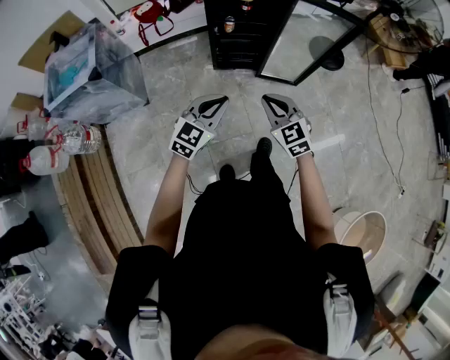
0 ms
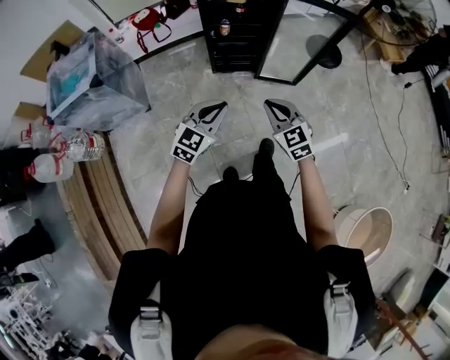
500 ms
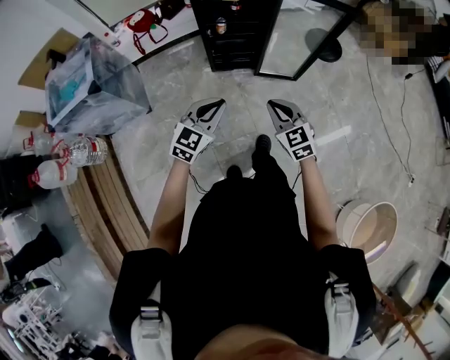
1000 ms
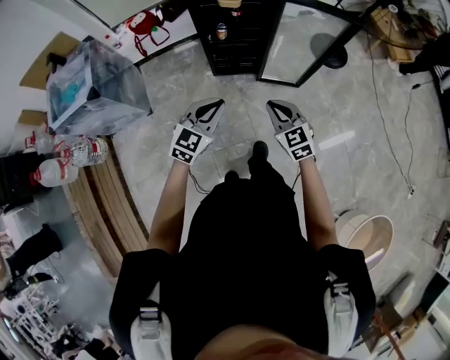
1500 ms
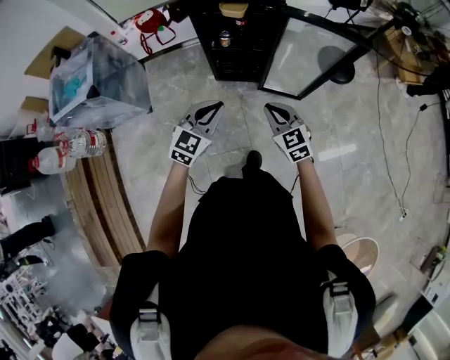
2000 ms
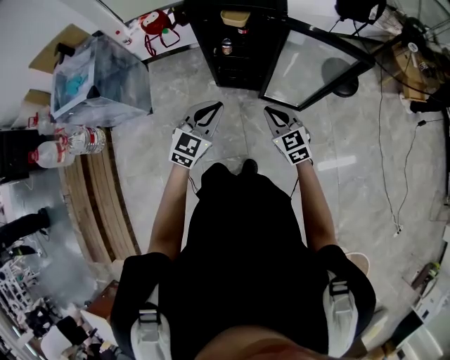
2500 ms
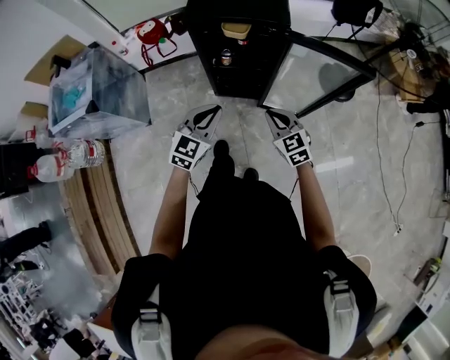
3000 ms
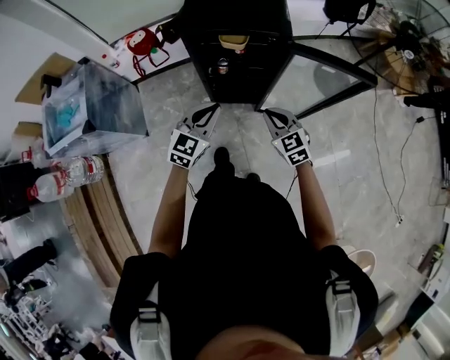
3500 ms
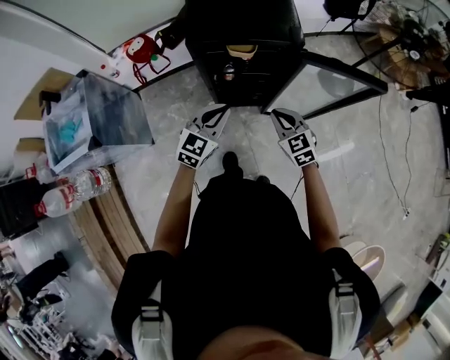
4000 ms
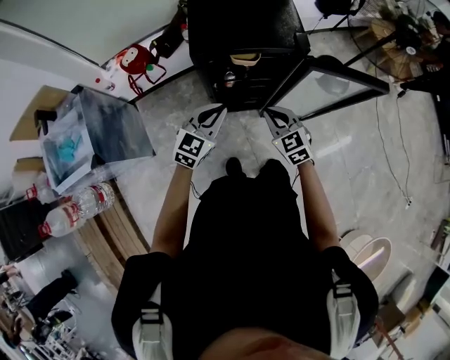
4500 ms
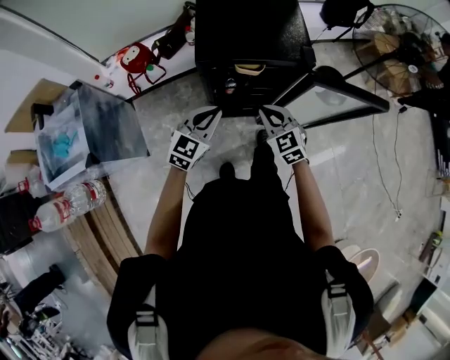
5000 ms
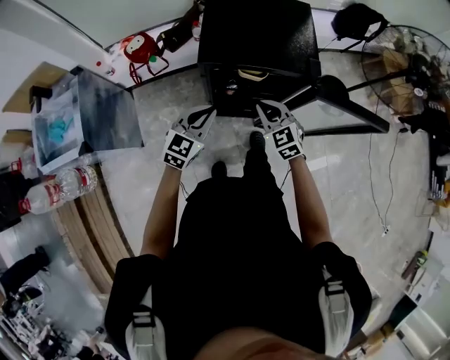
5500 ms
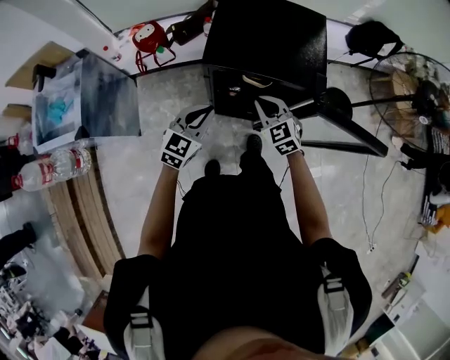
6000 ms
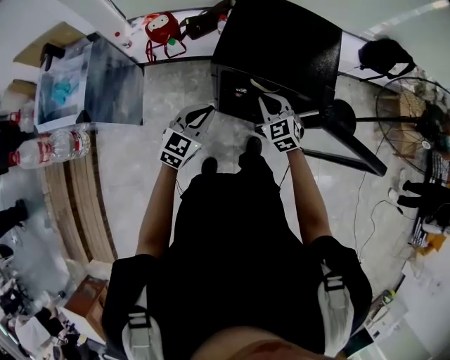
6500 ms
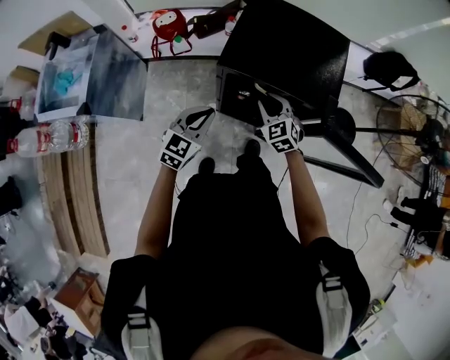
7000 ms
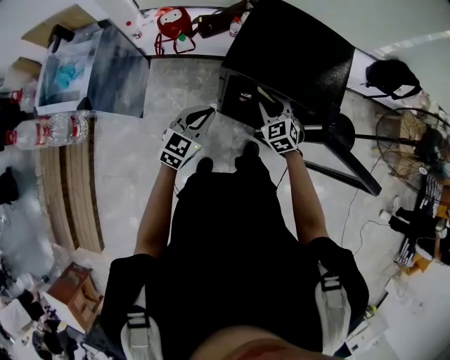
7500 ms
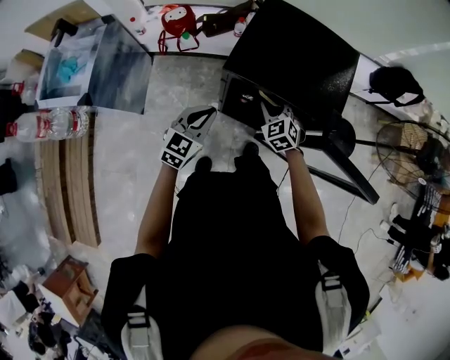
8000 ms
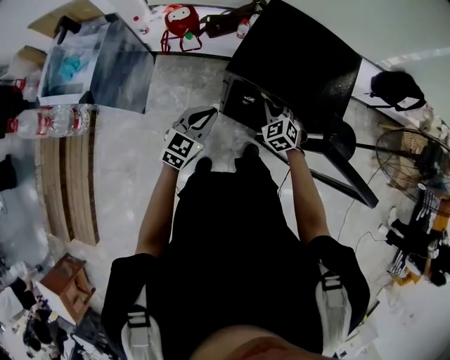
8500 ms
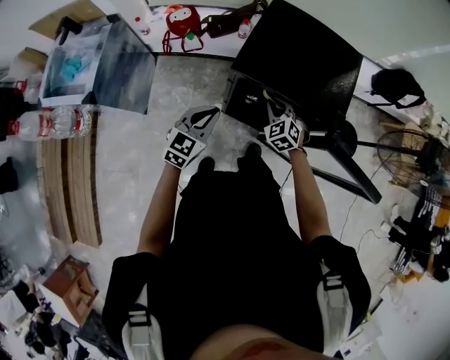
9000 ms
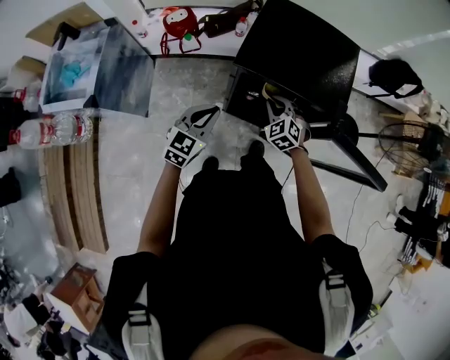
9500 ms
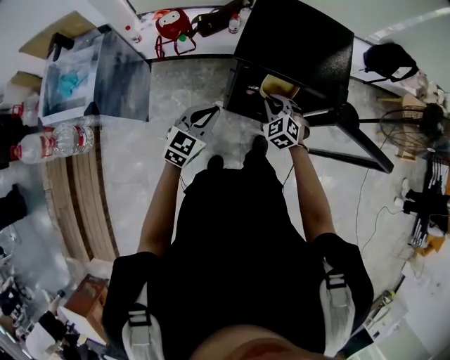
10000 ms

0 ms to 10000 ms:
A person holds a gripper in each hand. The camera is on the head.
0 ms to 2000 ms: The two grippers go some 15 cm forward and to the right.
2000 ms to 4000 ms: The grippers both shift forward by about 20 cm.
4000 ms to 6000 ms: The grippers both shift forward and to the left by roughly 15 cm.
6000 ms to 8000 ms: The right gripper is displaced forward and downward by approximately 10 cm, and opens up.
8000 ms to 10000 ms: The right gripper moves backward, about 5 cm. Meanwhile the left gripper shifts by some 5 cm.

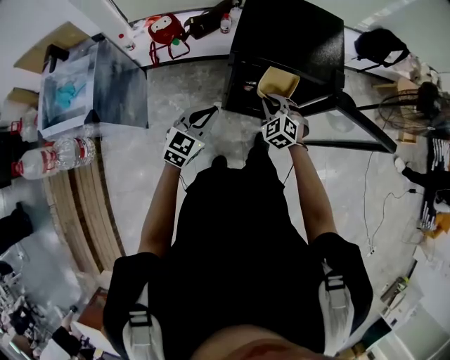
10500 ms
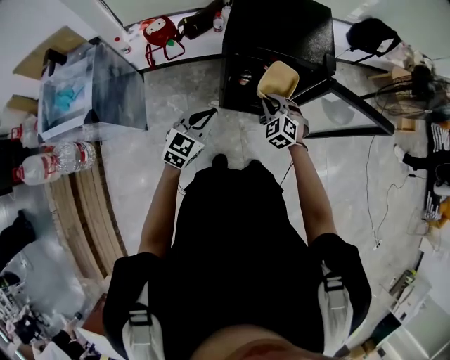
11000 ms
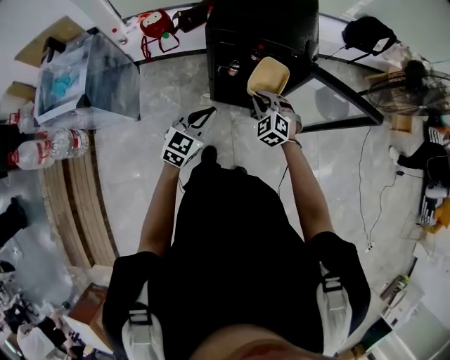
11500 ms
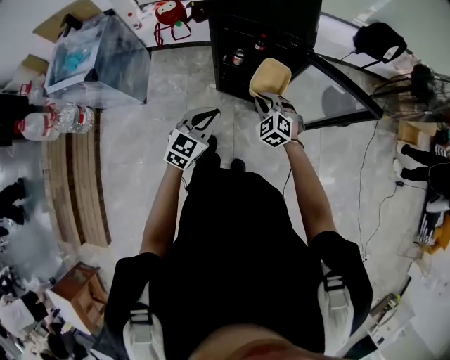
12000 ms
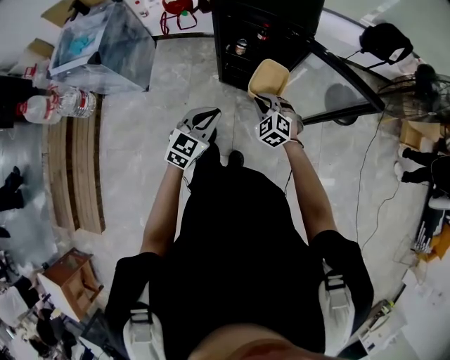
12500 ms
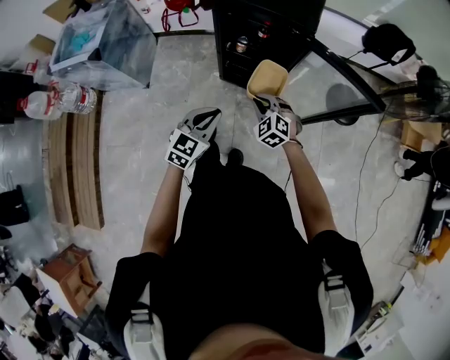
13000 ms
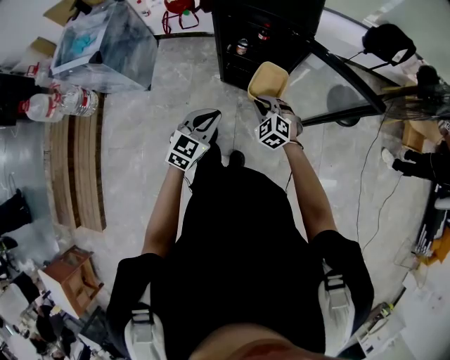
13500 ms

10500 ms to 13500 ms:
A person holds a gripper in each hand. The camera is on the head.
10500 ms to 12000 ms: Both grippers move backward and to the right, approximately 20 cm.
12000 ms to 13500 ms: The two grippers go roughly 5 cm backward.

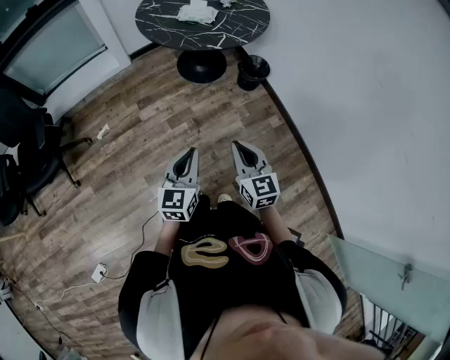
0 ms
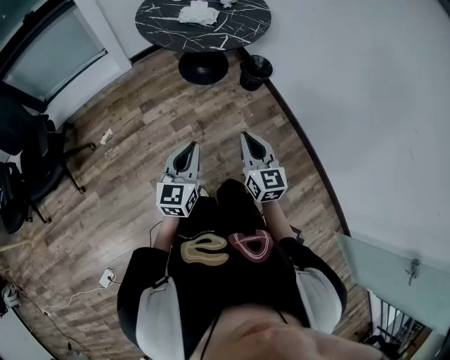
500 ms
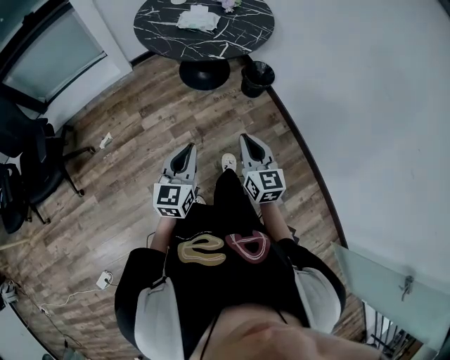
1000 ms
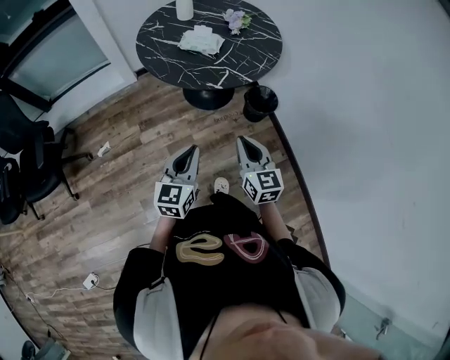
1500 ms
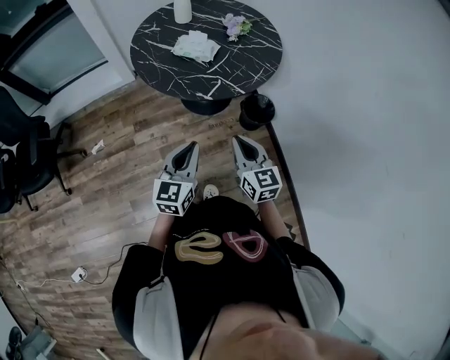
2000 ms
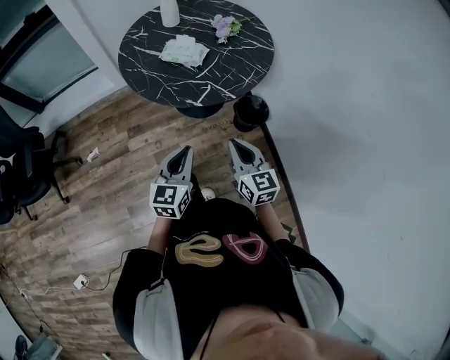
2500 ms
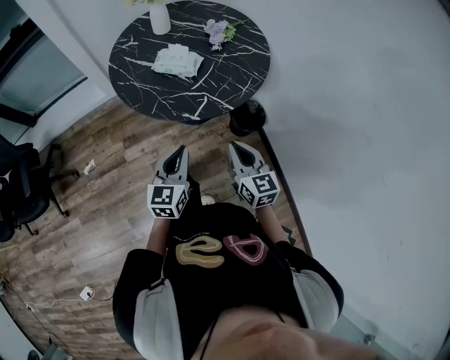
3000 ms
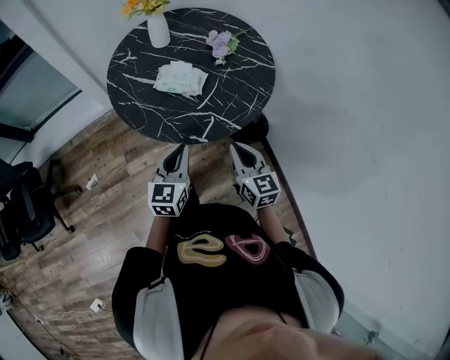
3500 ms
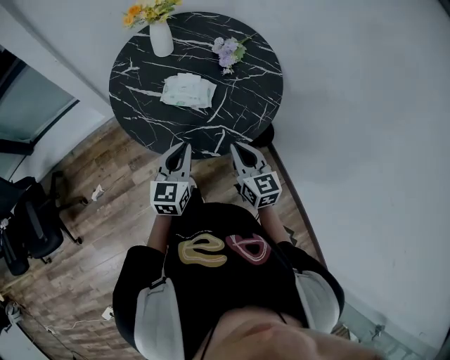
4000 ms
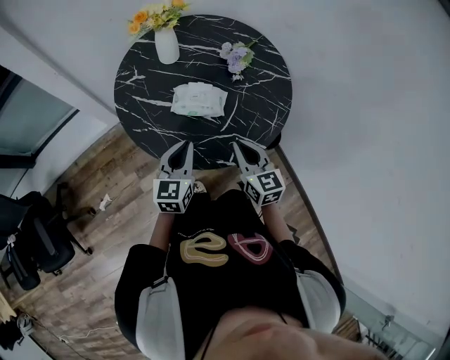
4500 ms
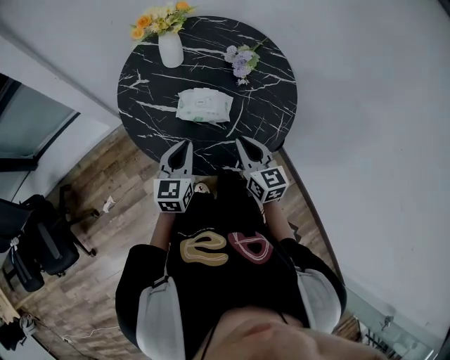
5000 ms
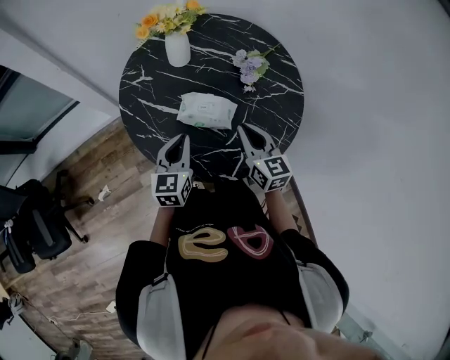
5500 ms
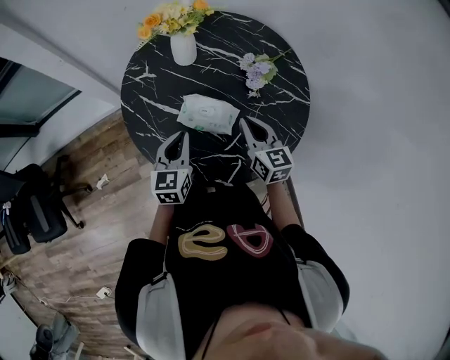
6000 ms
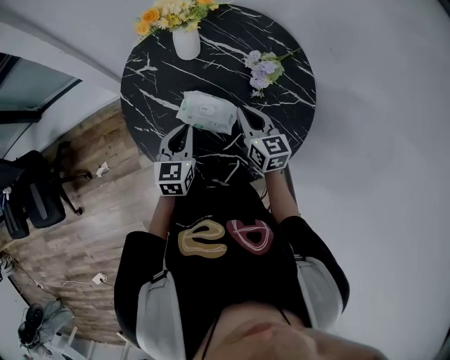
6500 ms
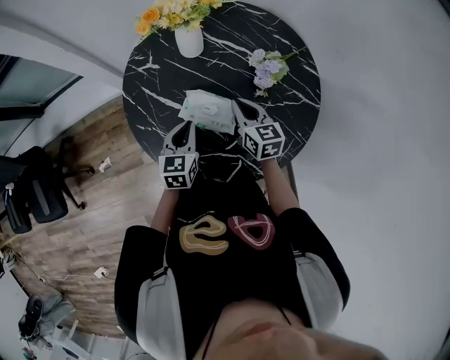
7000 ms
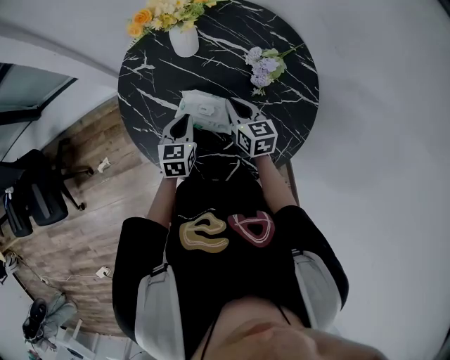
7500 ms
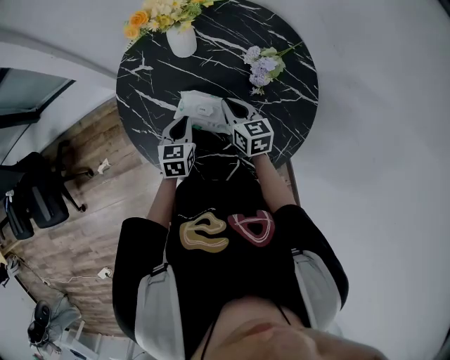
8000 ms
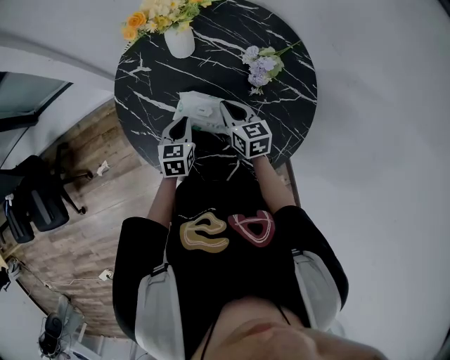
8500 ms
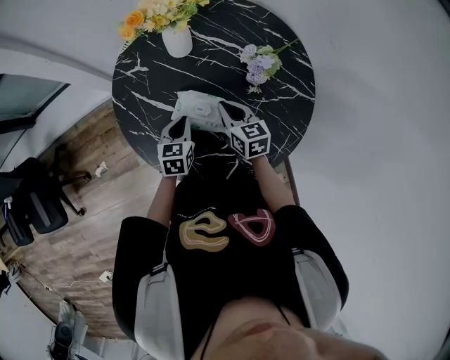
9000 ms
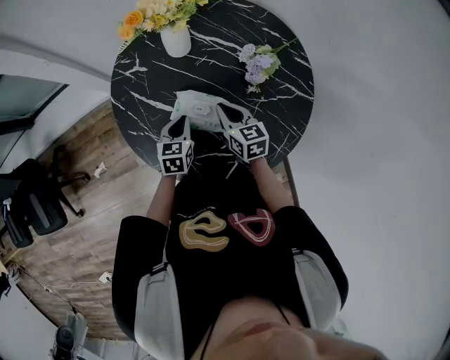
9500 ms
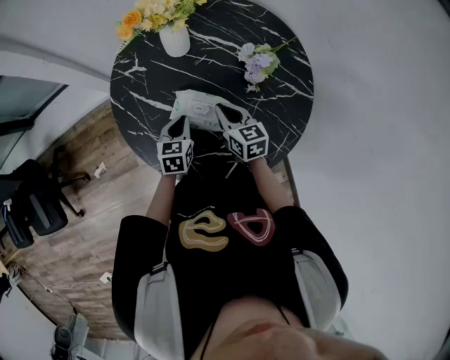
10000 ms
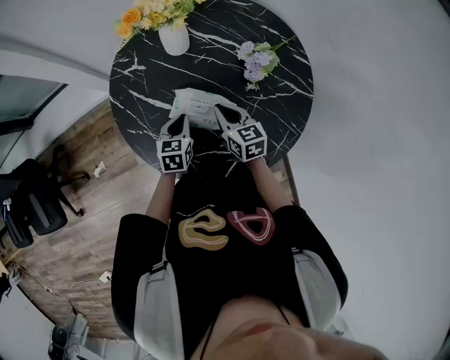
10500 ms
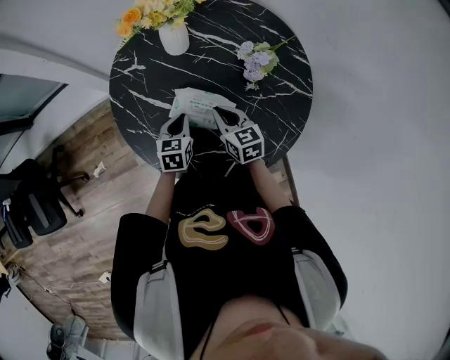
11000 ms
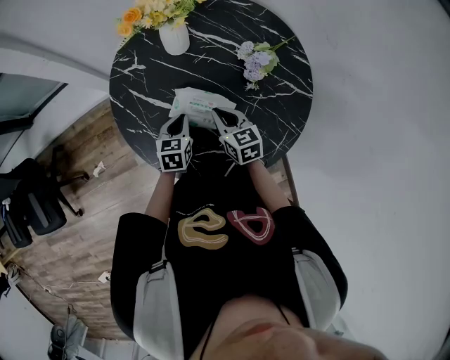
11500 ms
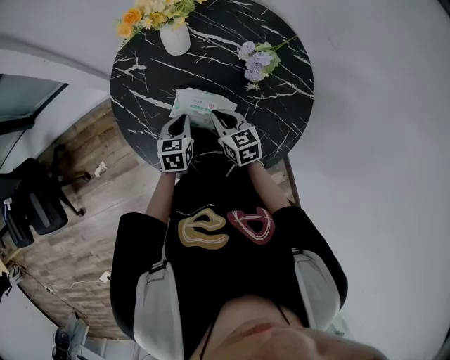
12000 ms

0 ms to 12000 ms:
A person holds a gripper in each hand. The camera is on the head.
0 ms to 2000 ms: The left gripper shifts roughly 30 cm forward and to the right. The right gripper is displaced forward by about 30 cm.
2000 ms to 4000 ms: Both grippers travel together forward, some 25 cm.
4000 ms to 6000 ms: Both grippers travel together forward, some 20 cm.
6000 ms to 8000 ms: The right gripper heads forward and downward, covering approximately 10 cm, while the left gripper moves downward and forward, roughly 10 cm.
8000 ms to 12000 ms: The grippers move only a little.

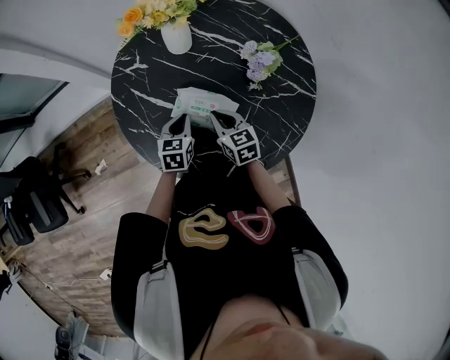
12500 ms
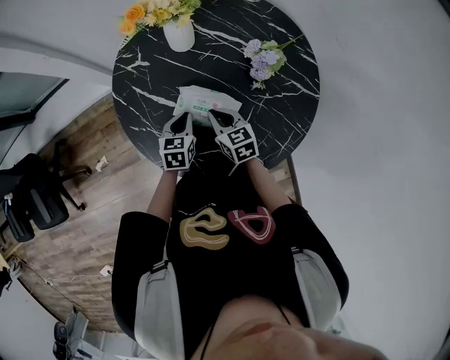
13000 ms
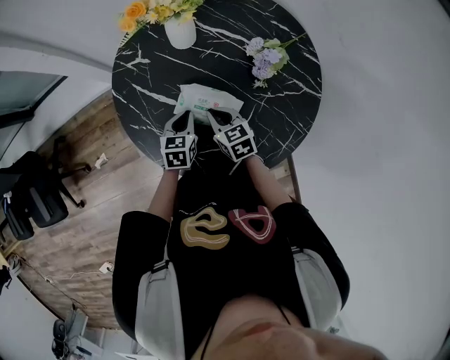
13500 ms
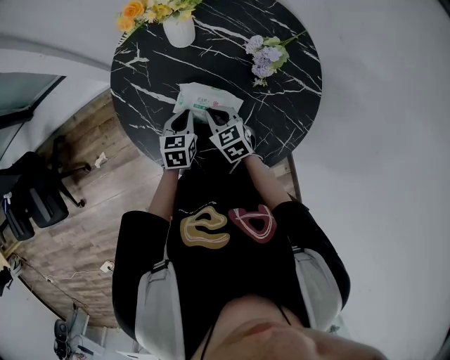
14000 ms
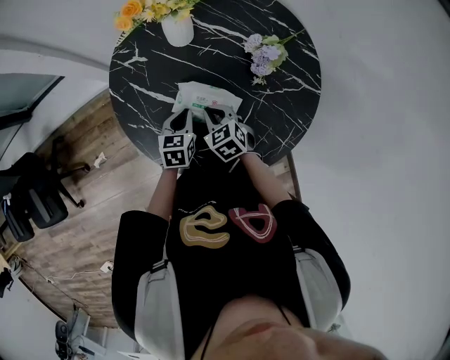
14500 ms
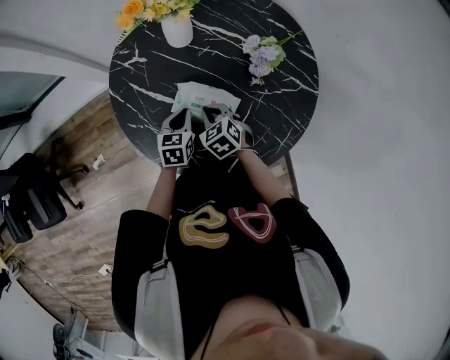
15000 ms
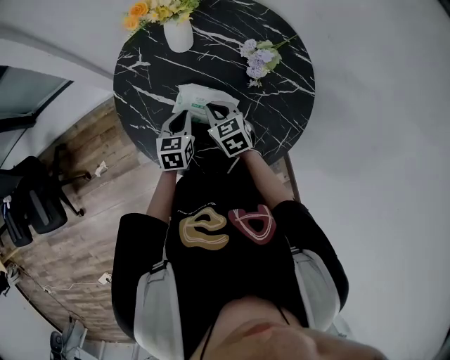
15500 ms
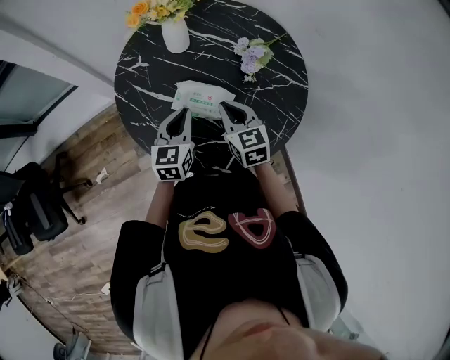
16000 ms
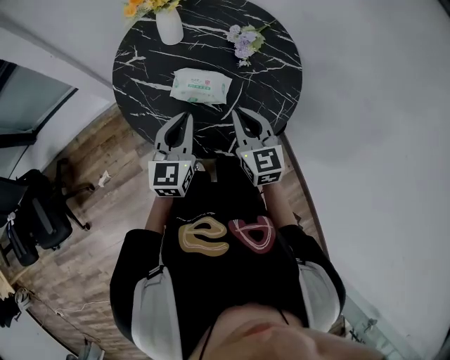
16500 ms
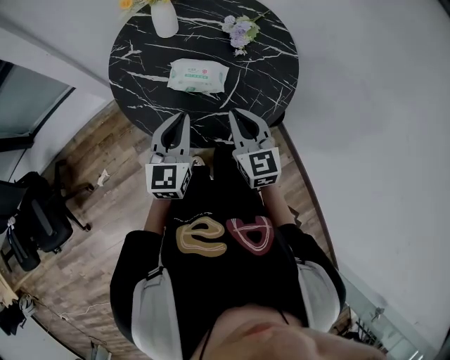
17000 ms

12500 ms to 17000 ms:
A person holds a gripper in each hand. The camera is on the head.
12500 ms to 14500 ms: The right gripper rotates about 20 degrees.
14500 ms to 17000 ms: The right gripper travels backward and upward by roughly 25 cm, and tilts its fingers about 30 degrees upward; the left gripper shifts approximately 25 cm upward and backward, and tilts its fingers roughly 30 degrees upward.
